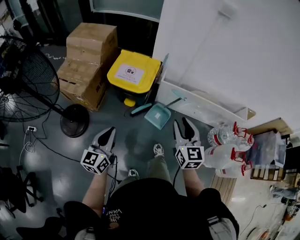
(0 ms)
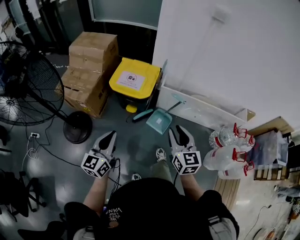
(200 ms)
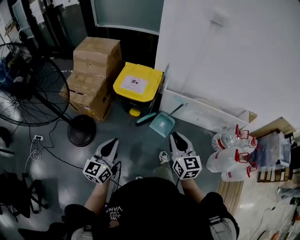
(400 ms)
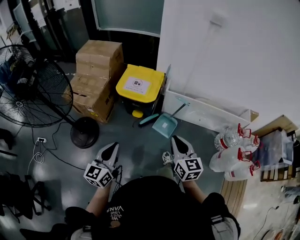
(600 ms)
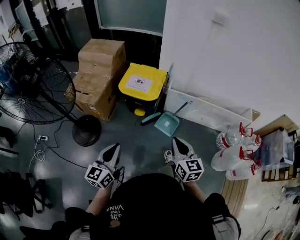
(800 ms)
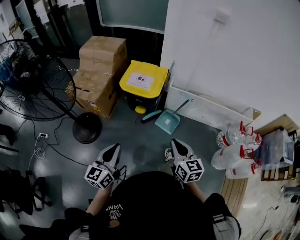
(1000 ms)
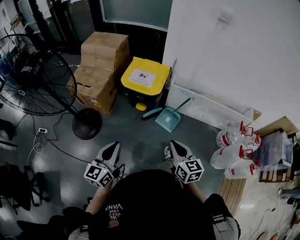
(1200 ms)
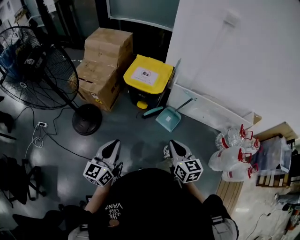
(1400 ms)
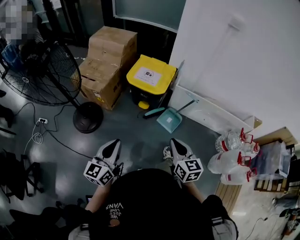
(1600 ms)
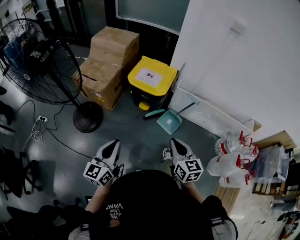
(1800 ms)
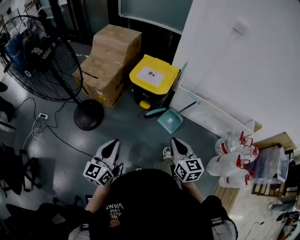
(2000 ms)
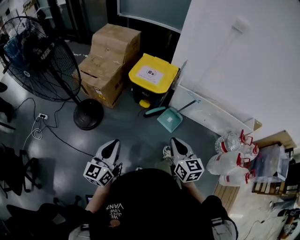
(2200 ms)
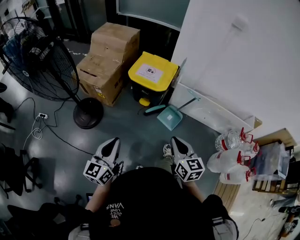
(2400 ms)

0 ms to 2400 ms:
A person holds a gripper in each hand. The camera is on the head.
0 ms to 1200 ms: The left gripper is displaced backward by approximately 15 cm. The right gripper shifts about 15 cm backward and to the left, and closes up.
1200 ms to 2400 ms: There are only small adjustments of the grippers.

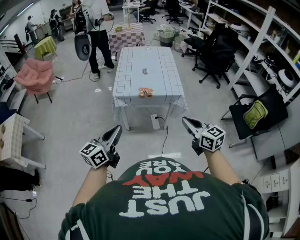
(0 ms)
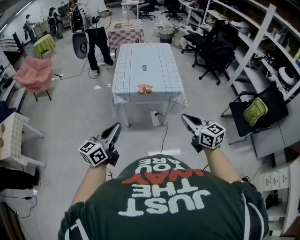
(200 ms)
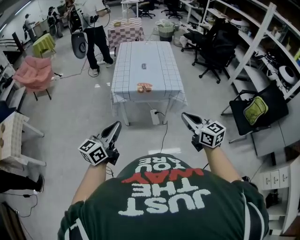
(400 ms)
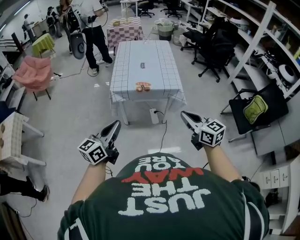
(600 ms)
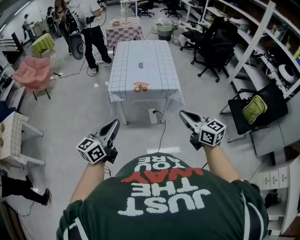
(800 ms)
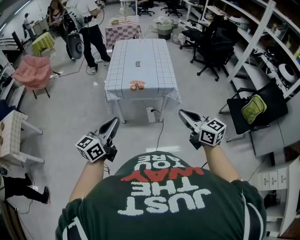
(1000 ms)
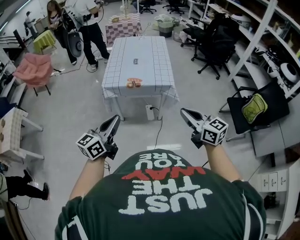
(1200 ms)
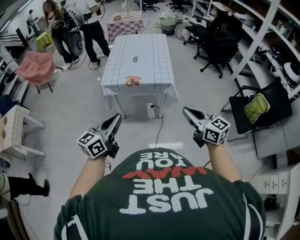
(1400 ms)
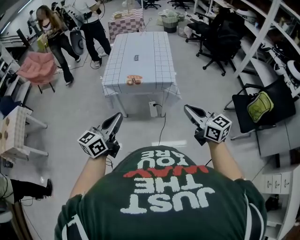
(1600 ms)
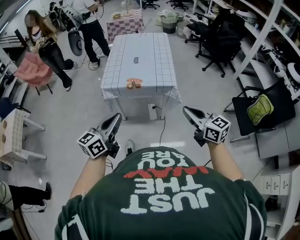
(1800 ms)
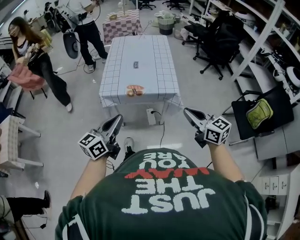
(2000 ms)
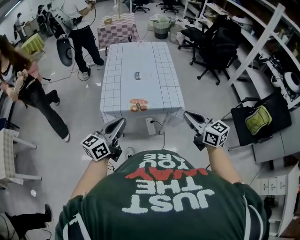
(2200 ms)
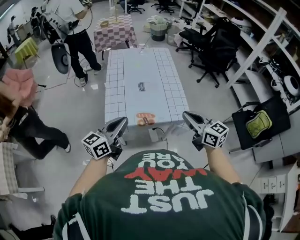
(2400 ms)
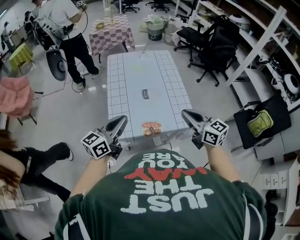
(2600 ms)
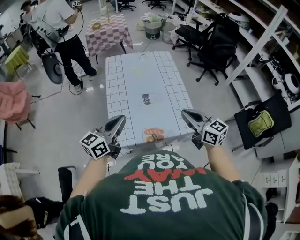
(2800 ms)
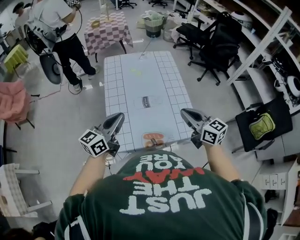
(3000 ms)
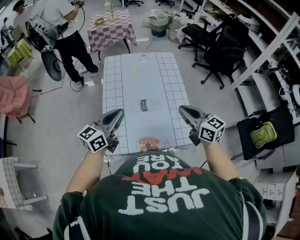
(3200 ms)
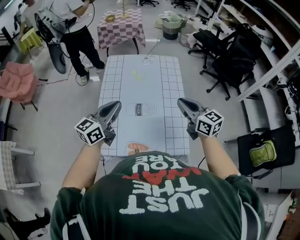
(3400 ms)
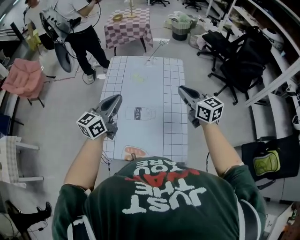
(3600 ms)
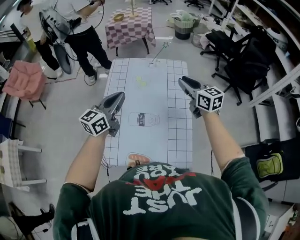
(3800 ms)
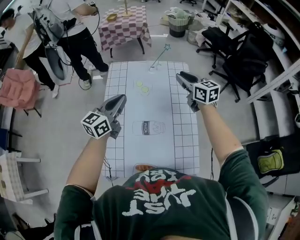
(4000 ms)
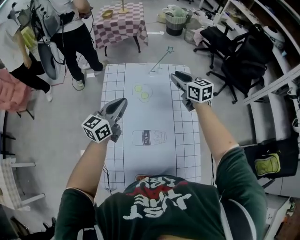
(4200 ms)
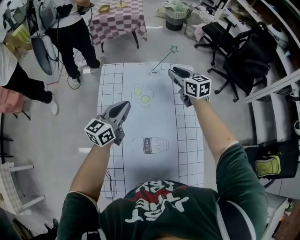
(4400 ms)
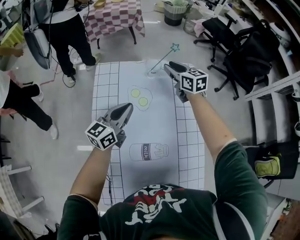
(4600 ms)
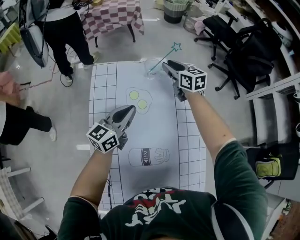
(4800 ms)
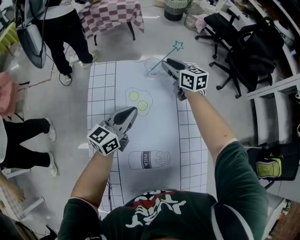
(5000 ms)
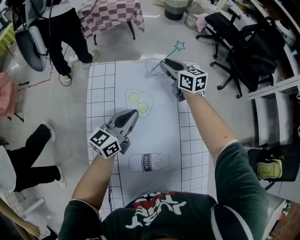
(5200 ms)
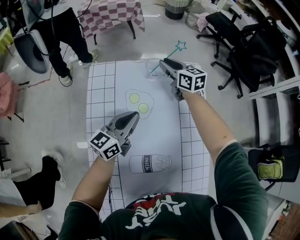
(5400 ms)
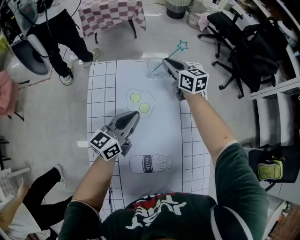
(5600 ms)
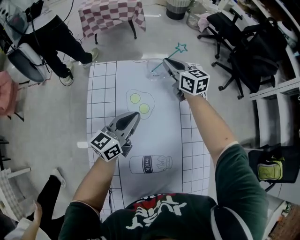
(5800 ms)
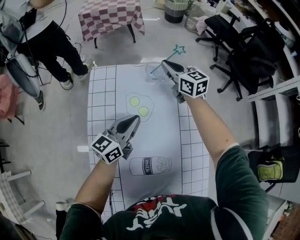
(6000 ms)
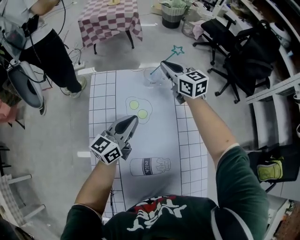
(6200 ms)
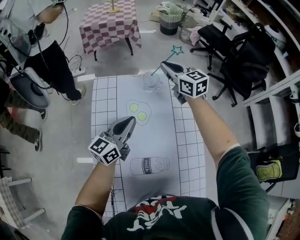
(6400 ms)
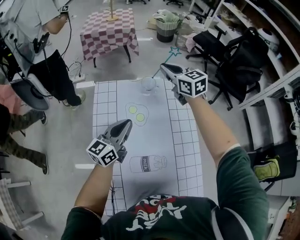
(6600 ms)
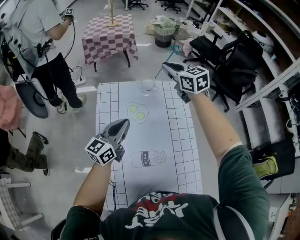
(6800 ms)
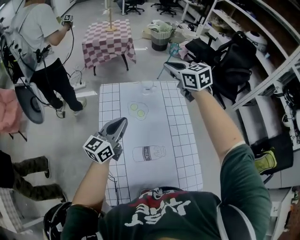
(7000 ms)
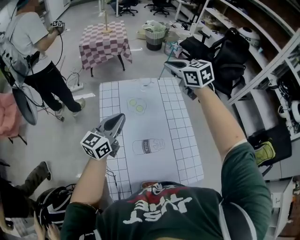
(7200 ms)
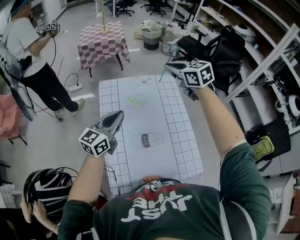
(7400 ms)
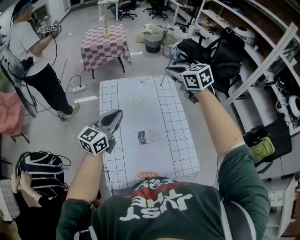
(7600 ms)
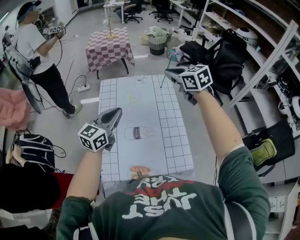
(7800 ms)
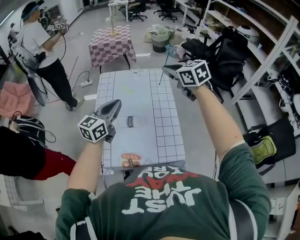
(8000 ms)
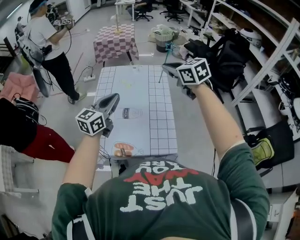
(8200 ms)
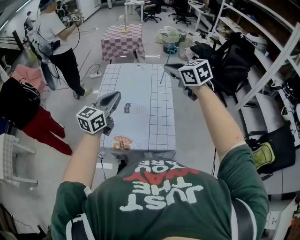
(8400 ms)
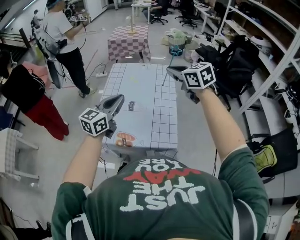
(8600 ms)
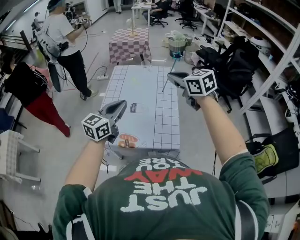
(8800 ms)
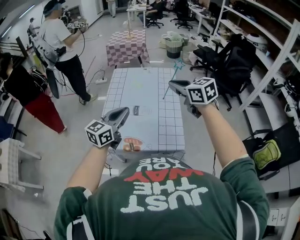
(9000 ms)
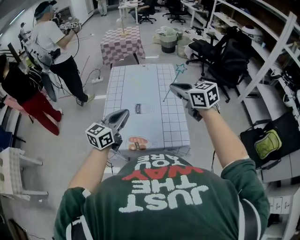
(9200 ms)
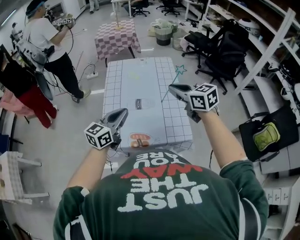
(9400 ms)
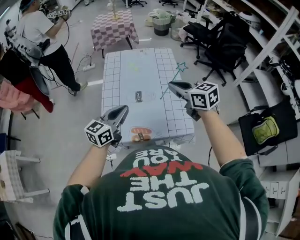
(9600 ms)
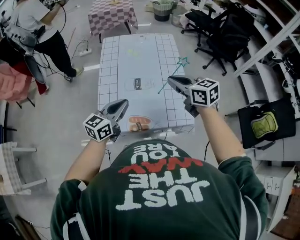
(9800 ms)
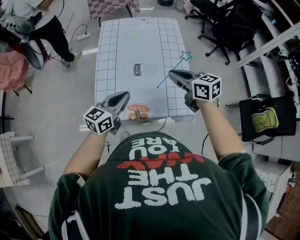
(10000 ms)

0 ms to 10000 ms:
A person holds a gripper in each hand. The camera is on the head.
0 ms to 1400 ms: The two grippers go about 15 cm to the right.
1400 ms to 2800 ms: The two grippers travel together, forward and to the left, some 50 cm.
2800 ms to 4200 ms: The grippers both shift forward by some 50 cm. The right gripper opens up.
4200 ms to 5800 ms: The left gripper shifts approximately 20 cm downward, forward and to the right. Meanwhile the right gripper heads forward and downward, covering about 20 cm, and closes.
5800 ms to 7200 ms: The grippers both shift upward and backward by about 30 cm.
7200 ms to 8600 ms: The right gripper heads backward, covering approximately 35 cm. Meanwhile the left gripper moves backward and to the right, approximately 30 cm.
8600 ms to 10000 ms: The two grippers go some 20 cm downward and to the left. The right gripper rotates roughly 30 degrees.

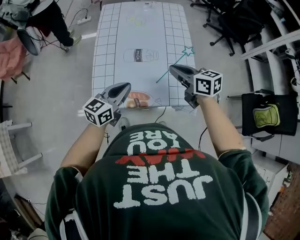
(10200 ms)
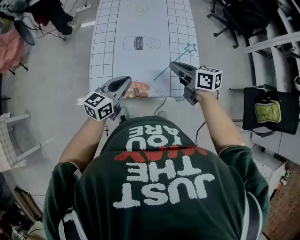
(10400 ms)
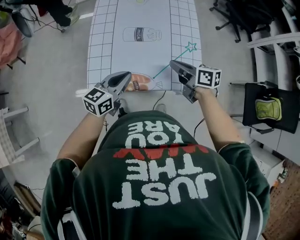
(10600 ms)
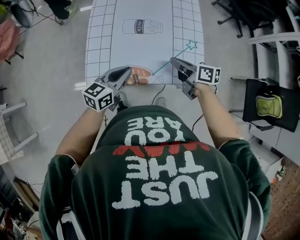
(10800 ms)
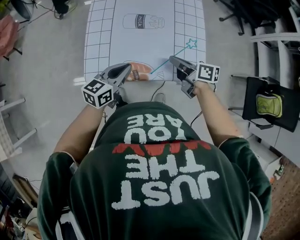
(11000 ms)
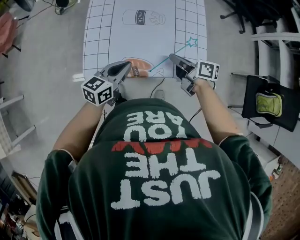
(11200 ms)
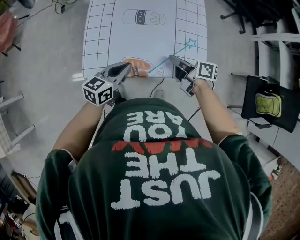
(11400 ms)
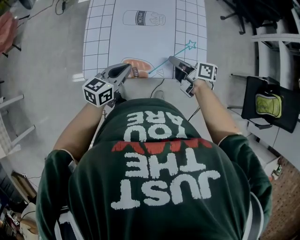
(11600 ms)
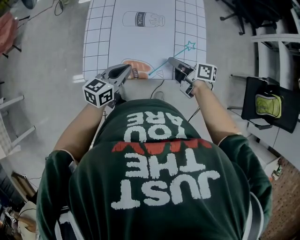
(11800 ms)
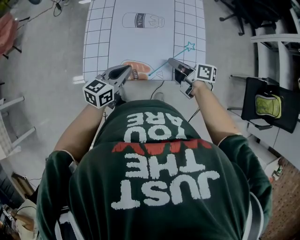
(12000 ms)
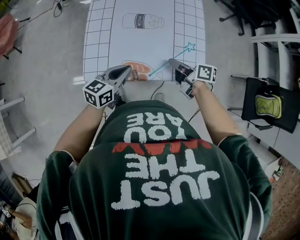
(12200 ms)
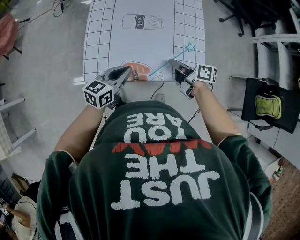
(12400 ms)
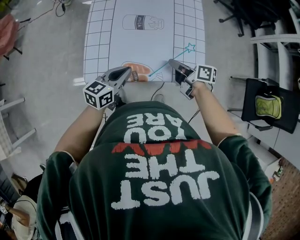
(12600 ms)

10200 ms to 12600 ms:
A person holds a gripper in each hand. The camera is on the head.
10200 ms to 11400 ms: The left gripper heads downward, covering approximately 10 cm, while the right gripper shifts roughly 15 cm downward, and turns by roughly 40 degrees.
11400 ms to 12600 ms: The two grippers keep their place.

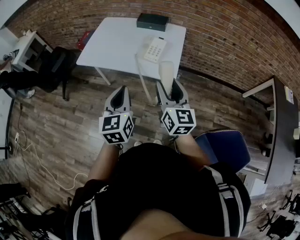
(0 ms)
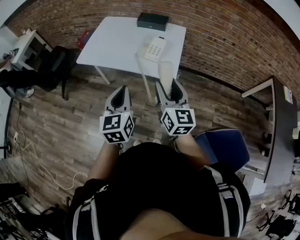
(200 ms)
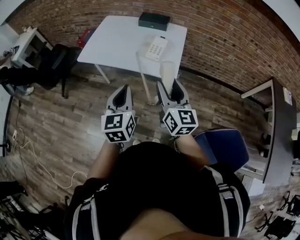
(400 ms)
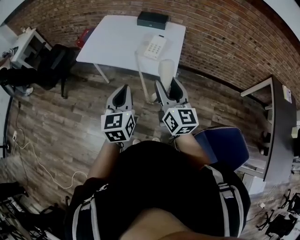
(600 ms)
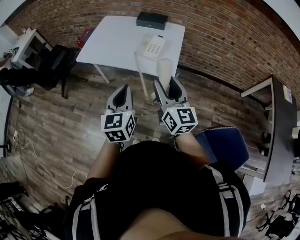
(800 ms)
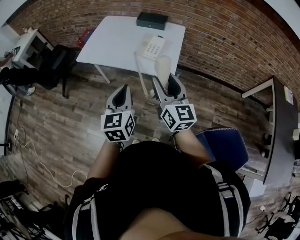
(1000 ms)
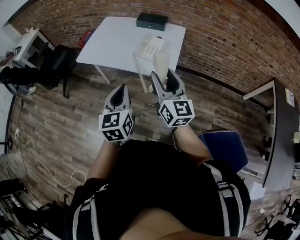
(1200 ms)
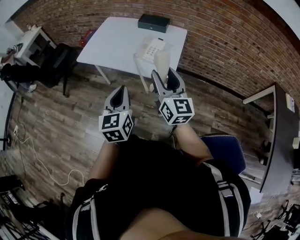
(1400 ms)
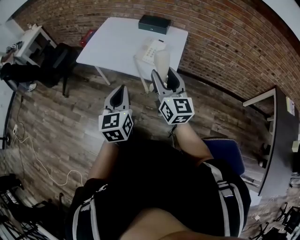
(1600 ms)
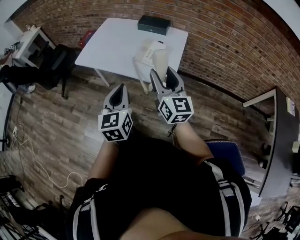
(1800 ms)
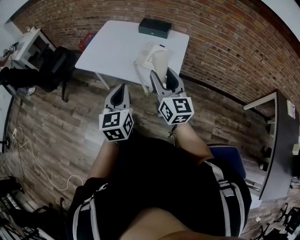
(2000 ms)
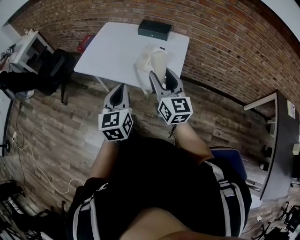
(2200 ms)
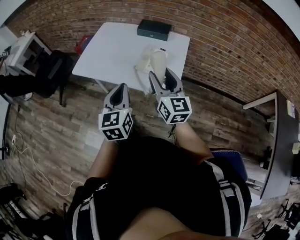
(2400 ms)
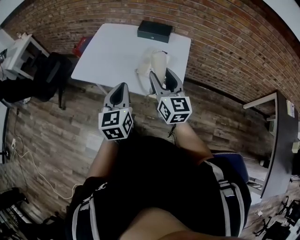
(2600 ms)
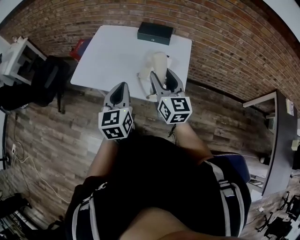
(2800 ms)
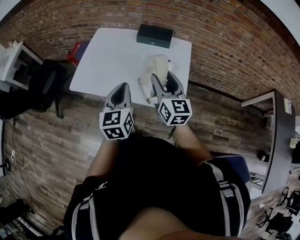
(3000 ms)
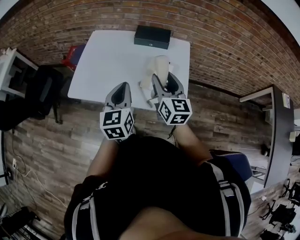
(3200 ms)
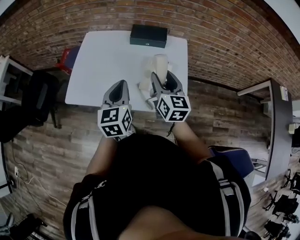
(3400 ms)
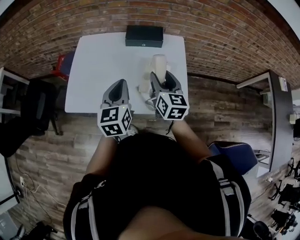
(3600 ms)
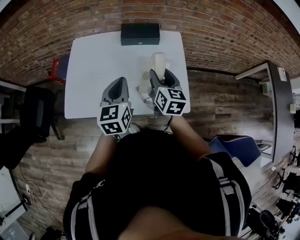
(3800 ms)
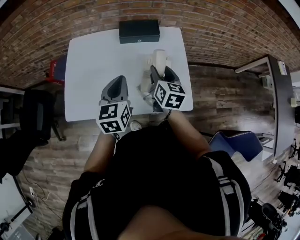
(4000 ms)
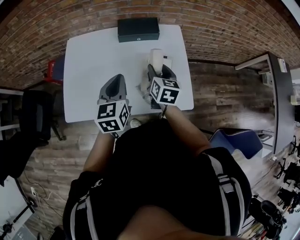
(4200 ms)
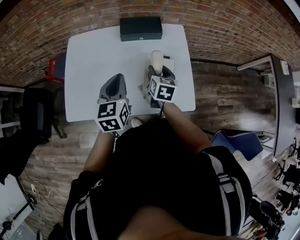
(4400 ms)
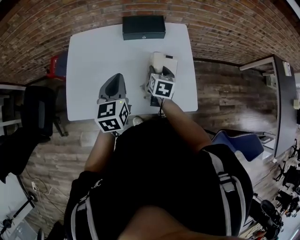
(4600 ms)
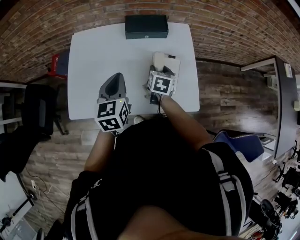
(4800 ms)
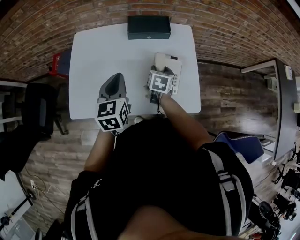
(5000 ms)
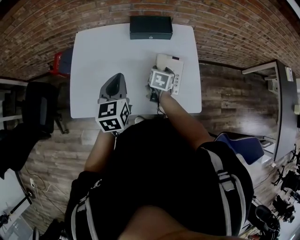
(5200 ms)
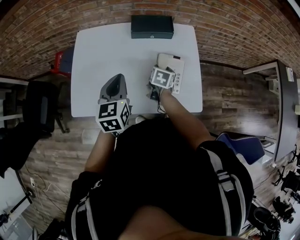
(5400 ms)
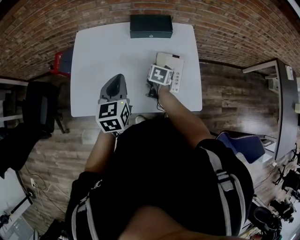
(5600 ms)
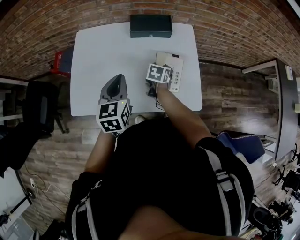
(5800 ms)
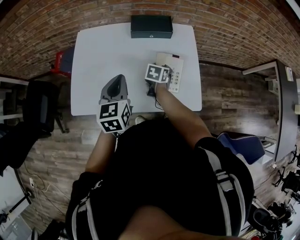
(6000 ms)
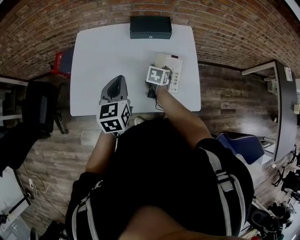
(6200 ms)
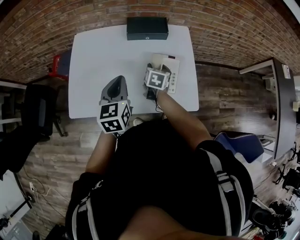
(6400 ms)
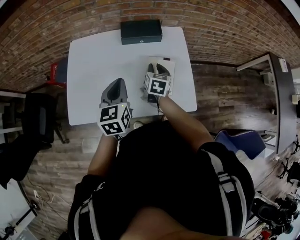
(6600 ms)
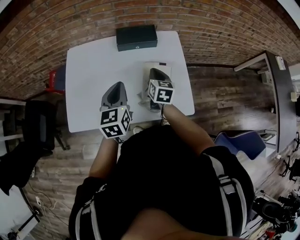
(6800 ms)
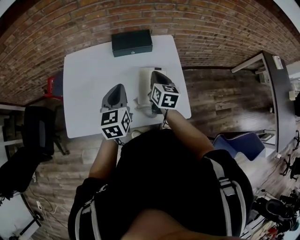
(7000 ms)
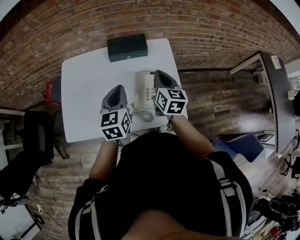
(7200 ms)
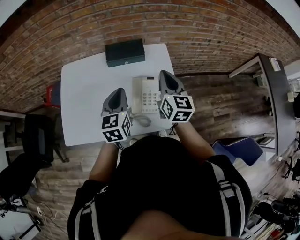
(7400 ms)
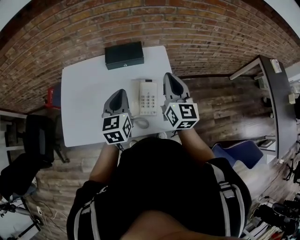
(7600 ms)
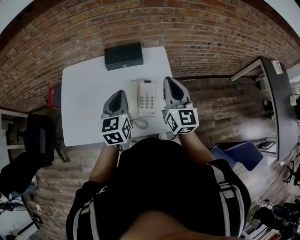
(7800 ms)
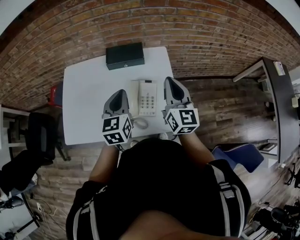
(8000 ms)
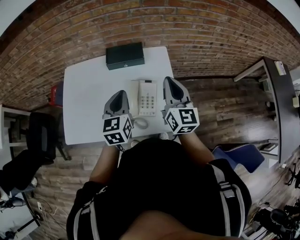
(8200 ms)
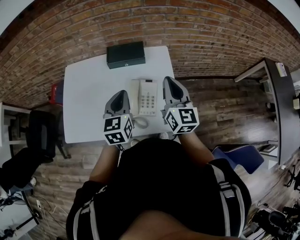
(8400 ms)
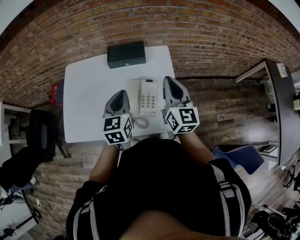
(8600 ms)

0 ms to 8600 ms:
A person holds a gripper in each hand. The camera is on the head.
0 ms to 1400 ms: The grippers stay close to where they were, moving slightly.
1400 ms to 2800 ms: The two grippers go approximately 20 cm forward.
2800 ms to 4400 ms: The left gripper moves forward, approximately 25 cm, and swivels roughly 20 degrees; the right gripper shifts roughly 25 cm forward and downward, and angles its fingers downward, by roughly 30 degrees.
4400 ms to 5800 ms: The right gripper moves downward, approximately 10 cm, and turns by approximately 20 degrees.
5800 ms to 7200 ms: The left gripper travels to the right by approximately 10 cm. The right gripper moves upward, approximately 20 cm, points its fingers about 30 degrees further upward, and closes its fingers.
7200 ms to 8600 ms: The left gripper moves to the right, approximately 5 cm. The right gripper is displaced upward and to the right by about 10 cm.
